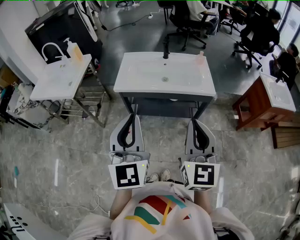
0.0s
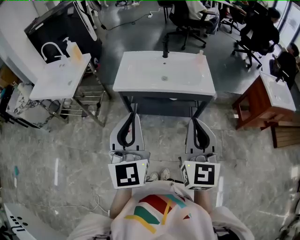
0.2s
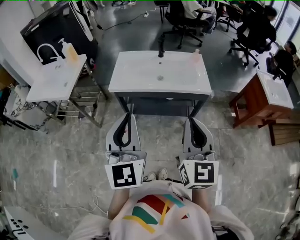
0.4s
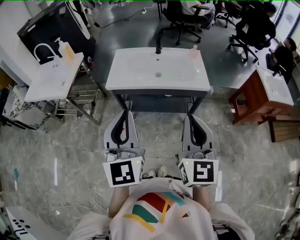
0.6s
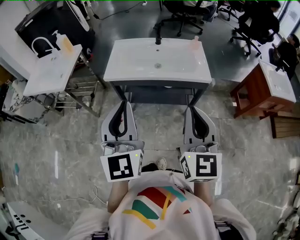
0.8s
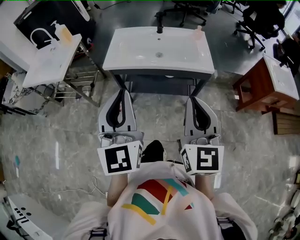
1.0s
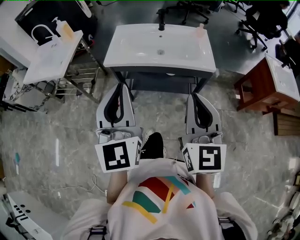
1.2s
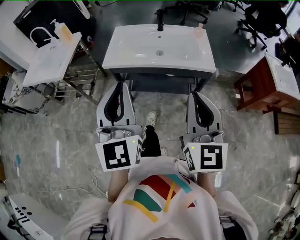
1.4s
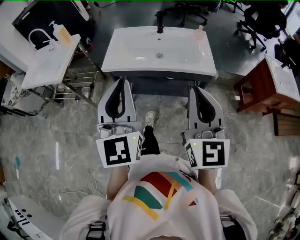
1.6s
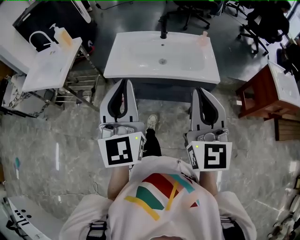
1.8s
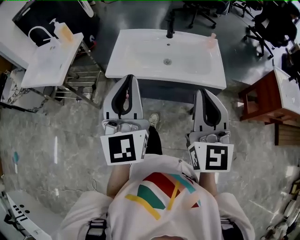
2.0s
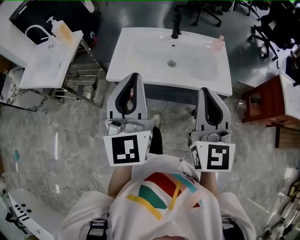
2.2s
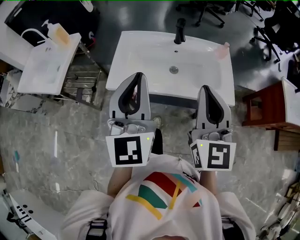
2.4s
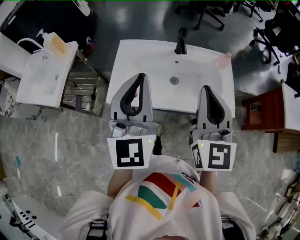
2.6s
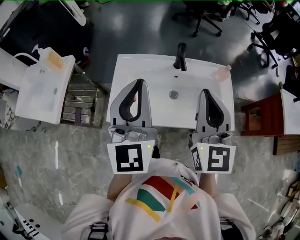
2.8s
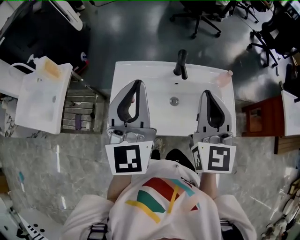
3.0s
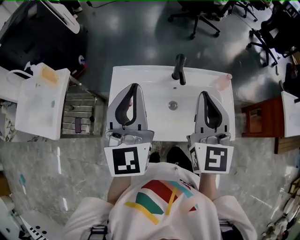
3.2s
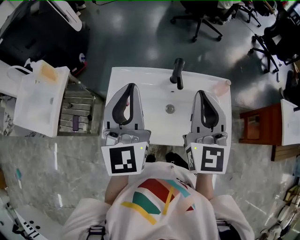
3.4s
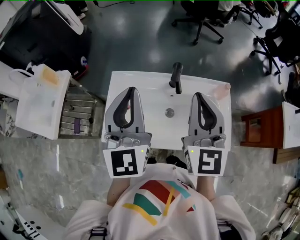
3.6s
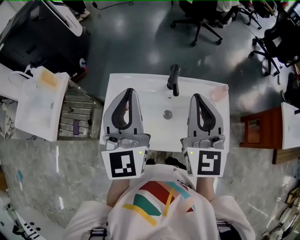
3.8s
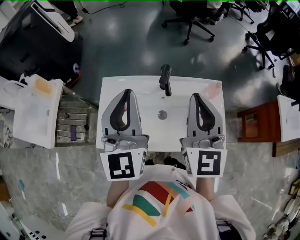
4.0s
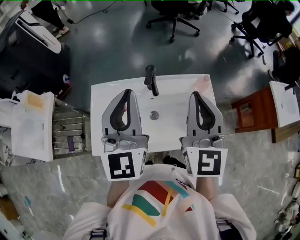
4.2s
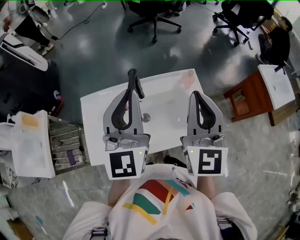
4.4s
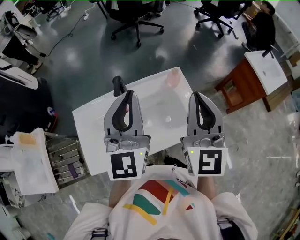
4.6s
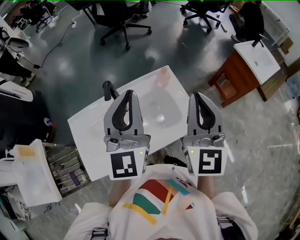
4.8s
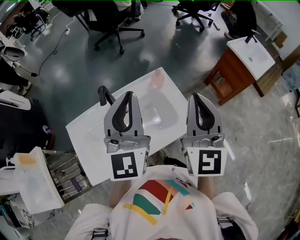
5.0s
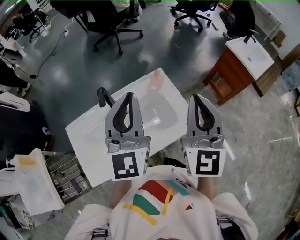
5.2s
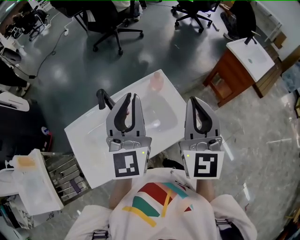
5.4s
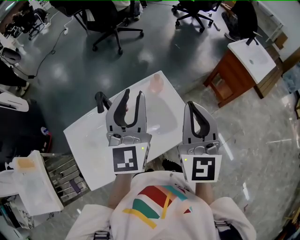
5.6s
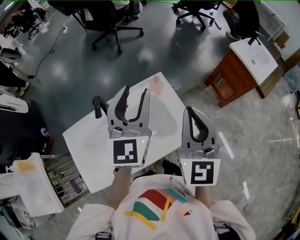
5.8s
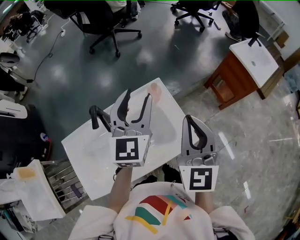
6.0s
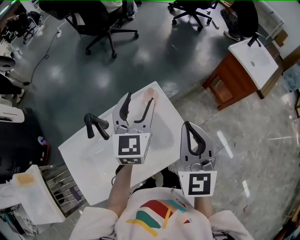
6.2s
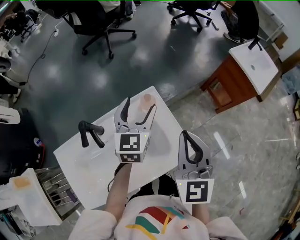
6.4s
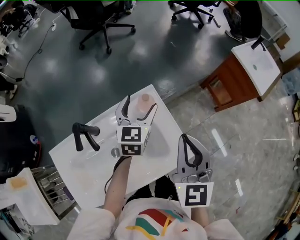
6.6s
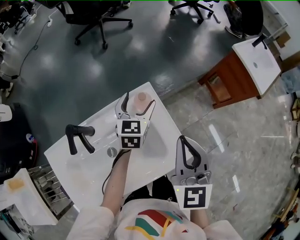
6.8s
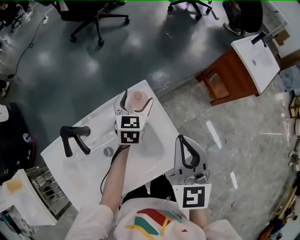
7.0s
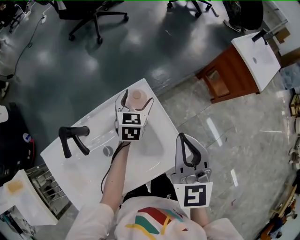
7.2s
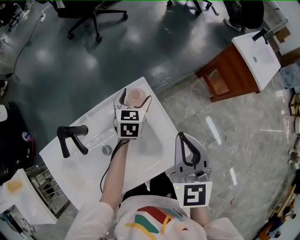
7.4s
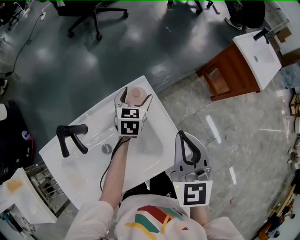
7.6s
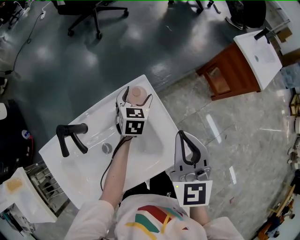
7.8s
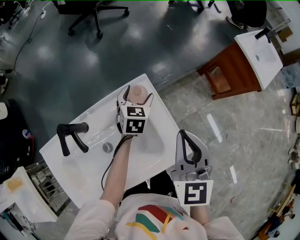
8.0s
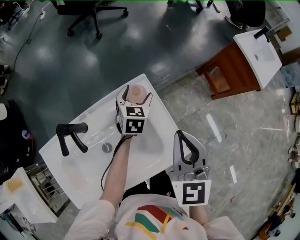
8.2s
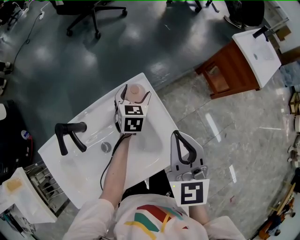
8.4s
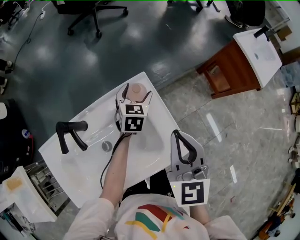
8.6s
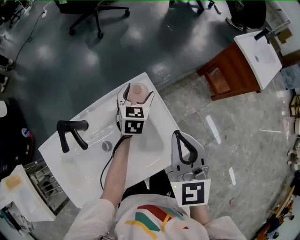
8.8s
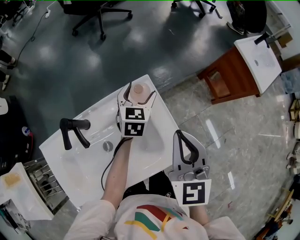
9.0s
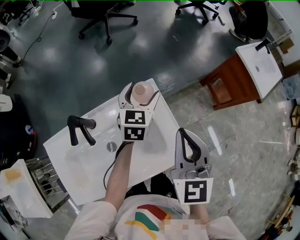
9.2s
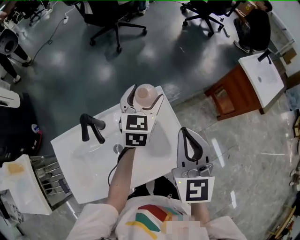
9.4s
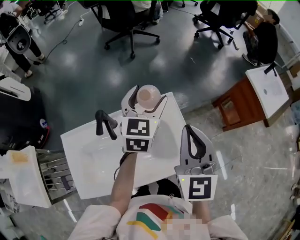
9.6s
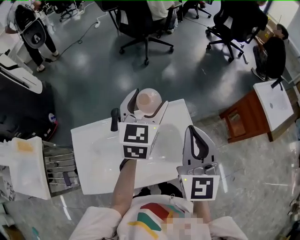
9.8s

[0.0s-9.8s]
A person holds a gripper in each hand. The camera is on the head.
0.0s to 1.4s: The grippers make only small movements.
1.4s to 2.8s: Both grippers move forward, some 35 cm.
2.8s to 4.2s: The grippers both shift forward and to the right by about 15 cm.
4.2s to 5.6s: The right gripper changes place by roughly 15 cm, and turns by approximately 20 degrees. The left gripper ends up about 20 cm from where it was, and changes its angle by some 30 degrees.
5.6s to 7.0s: The left gripper shifts some 35 cm downward and forward, tilts its fingers approximately 40 degrees downward, and opens up. Meanwhile the right gripper shifts approximately 15 cm downward and forward.
7.0s to 8.4s: The left gripper ends up some 5 cm from where it was.
8.4s to 9.8s: The right gripper moves upward and to the left, roughly 15 cm, and turns by approximately 20 degrees. The left gripper heads upward and to the left, covering approximately 30 cm, and changes its angle by about 30 degrees.

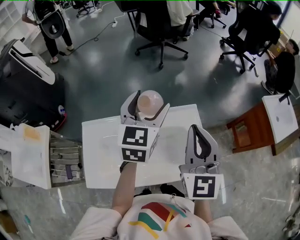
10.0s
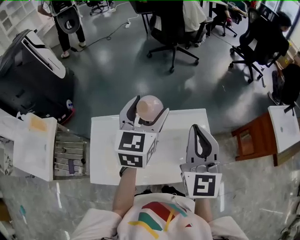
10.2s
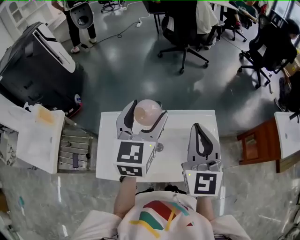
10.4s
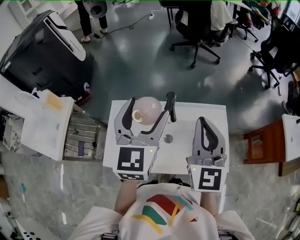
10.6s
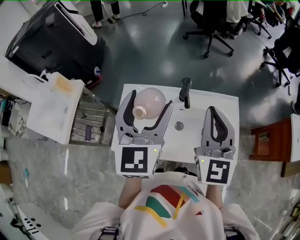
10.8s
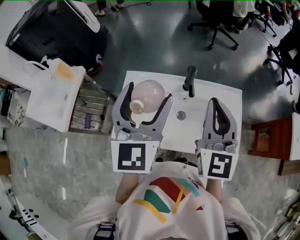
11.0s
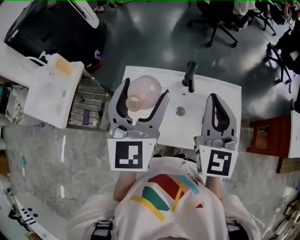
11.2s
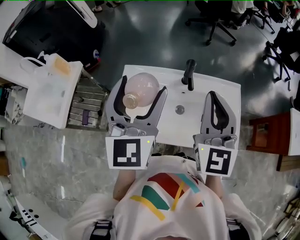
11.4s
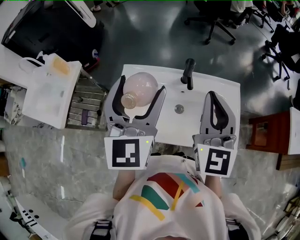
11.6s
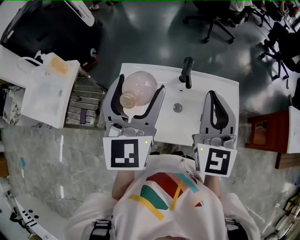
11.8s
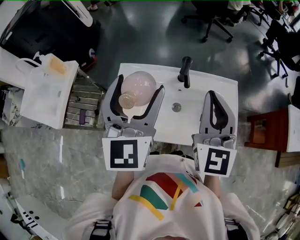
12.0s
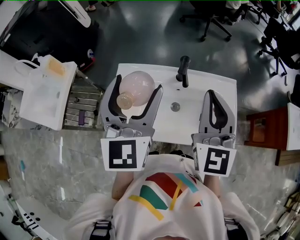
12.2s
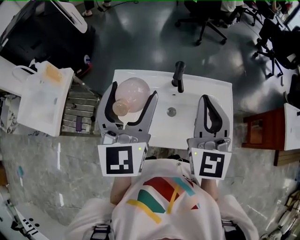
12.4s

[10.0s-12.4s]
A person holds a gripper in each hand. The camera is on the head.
10.0s to 11.2s: The left gripper shifts approximately 30 cm to the left and backward, and swivels approximately 30 degrees. Meanwhile the right gripper travels to the left by roughly 15 cm.
11.2s to 12.4s: The two grippers keep their place.

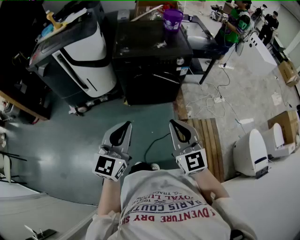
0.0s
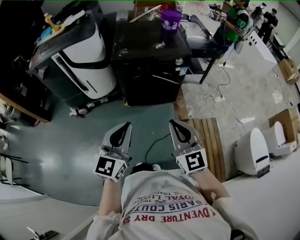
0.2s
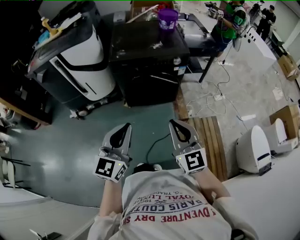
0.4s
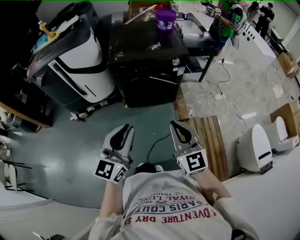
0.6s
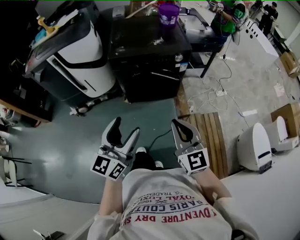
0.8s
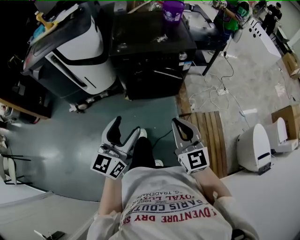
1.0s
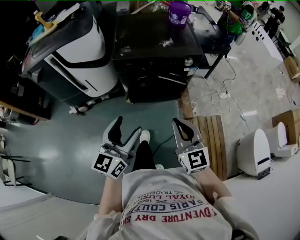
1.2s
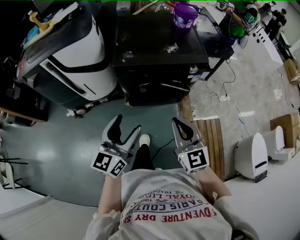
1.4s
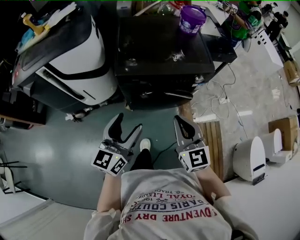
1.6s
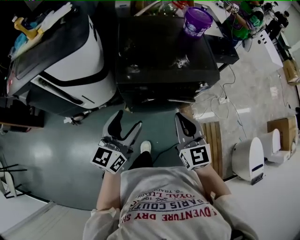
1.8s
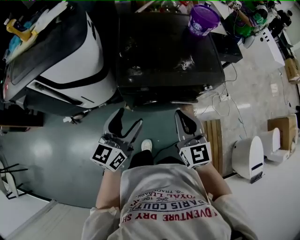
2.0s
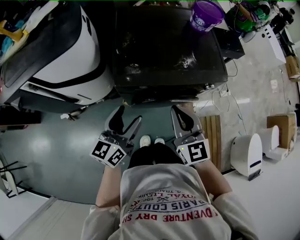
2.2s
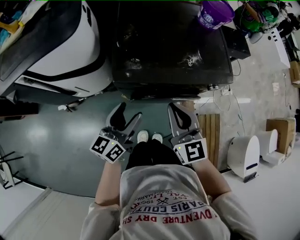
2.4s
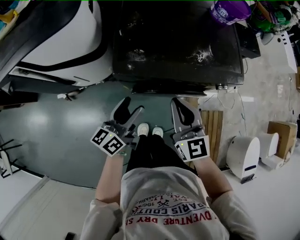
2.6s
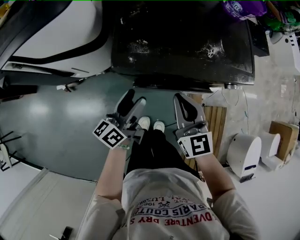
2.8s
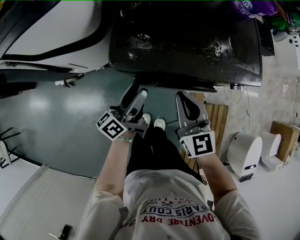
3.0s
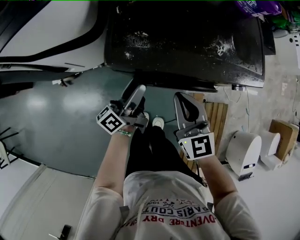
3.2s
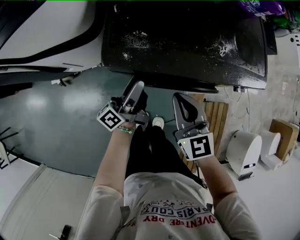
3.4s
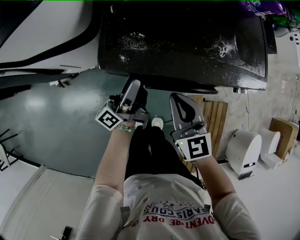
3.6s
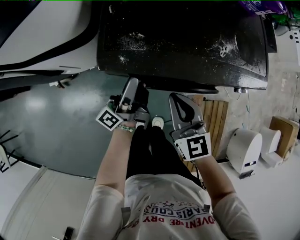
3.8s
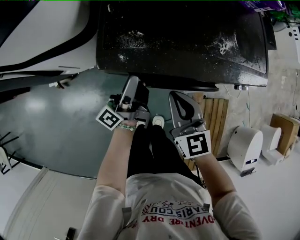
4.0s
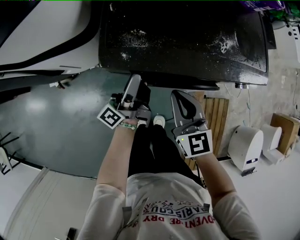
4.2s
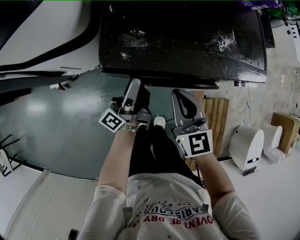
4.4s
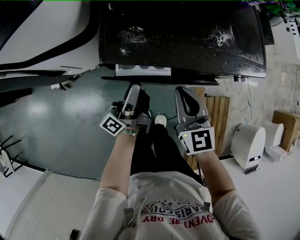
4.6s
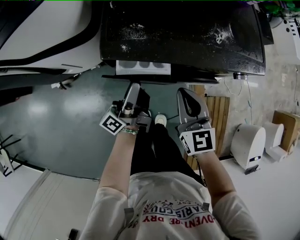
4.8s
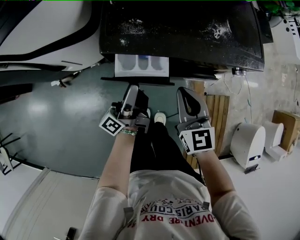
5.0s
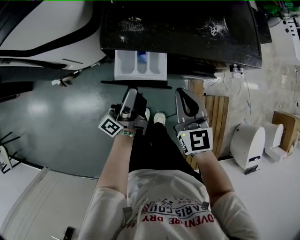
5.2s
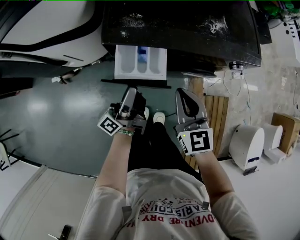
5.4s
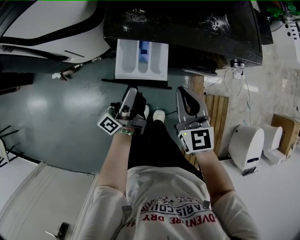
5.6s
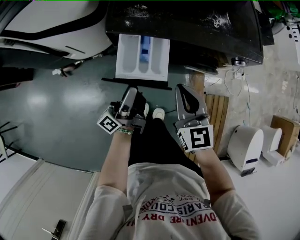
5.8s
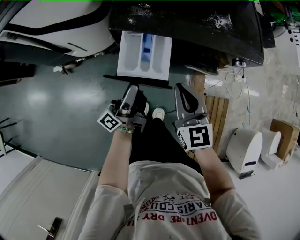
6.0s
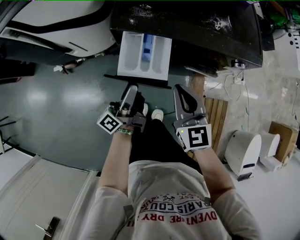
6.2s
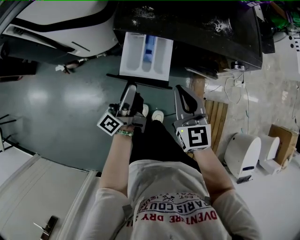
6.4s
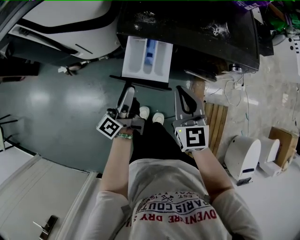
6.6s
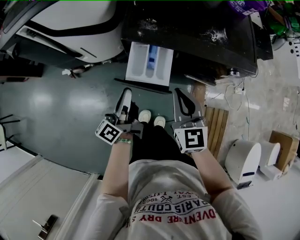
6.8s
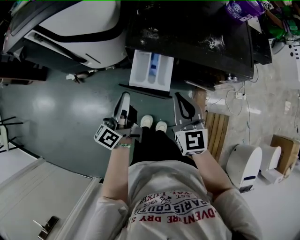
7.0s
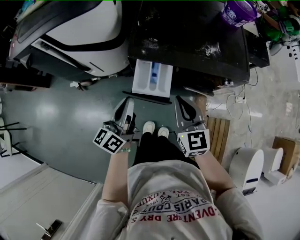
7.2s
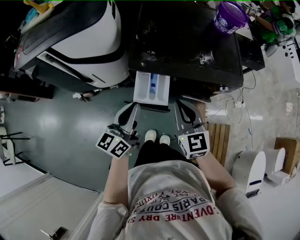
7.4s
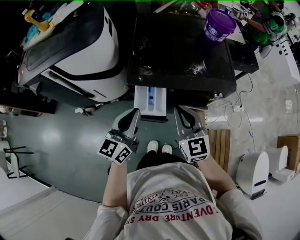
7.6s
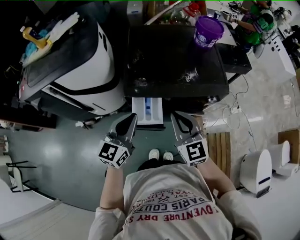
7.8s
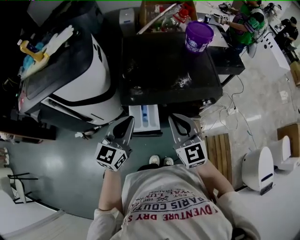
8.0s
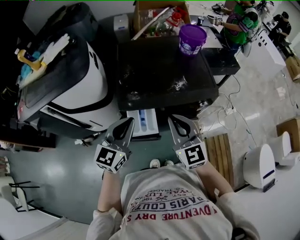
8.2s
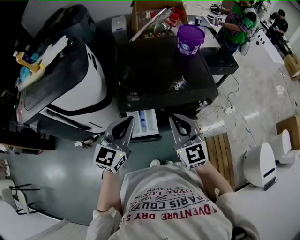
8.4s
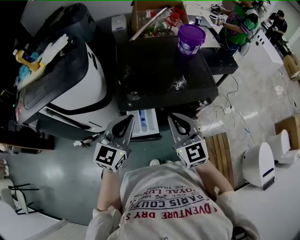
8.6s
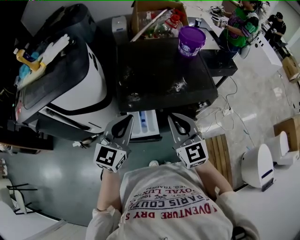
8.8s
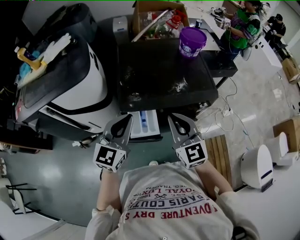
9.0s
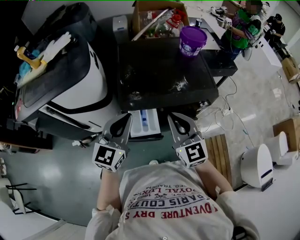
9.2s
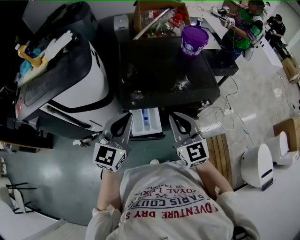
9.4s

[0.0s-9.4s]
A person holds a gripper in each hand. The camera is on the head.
0.0s to 1.6s: The grippers both shift forward by roughly 25 cm. The left gripper opens its fingers.
1.6s to 3.2s: The right gripper goes some 25 cm forward and downward. The left gripper shifts some 35 cm downward and forward, and rotates around the line of its fingers by some 50 degrees, counterclockwise from behind.
3.2s to 4.8s: The grippers stay close to where they were, moving slightly.
4.8s to 6.2s: Both grippers move backward, some 10 cm.
6.2s to 7.8s: Both grippers travel together upward, some 20 cm. The left gripper rotates around the line of its fingers by roughly 70 degrees, clockwise from behind, and closes up.
7.8s to 9.4s: The left gripper is displaced upward by some 5 cm.

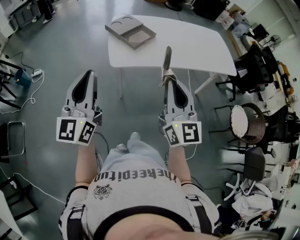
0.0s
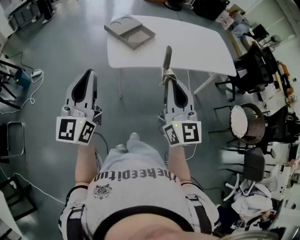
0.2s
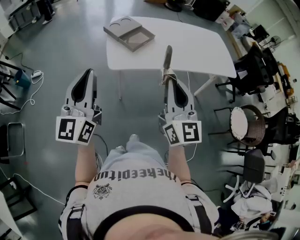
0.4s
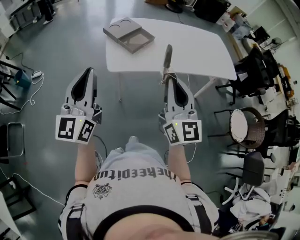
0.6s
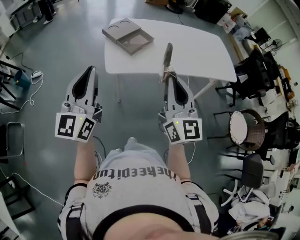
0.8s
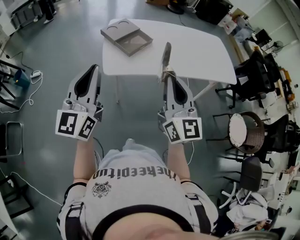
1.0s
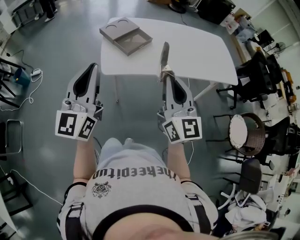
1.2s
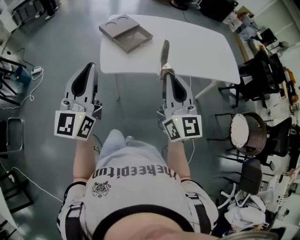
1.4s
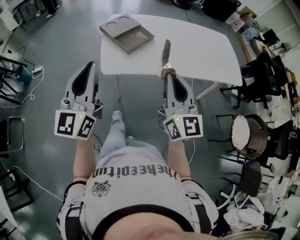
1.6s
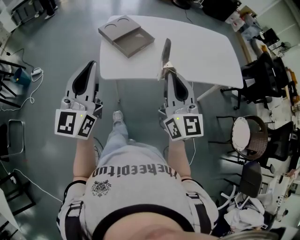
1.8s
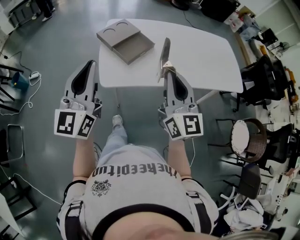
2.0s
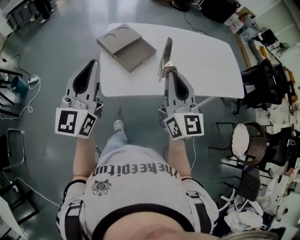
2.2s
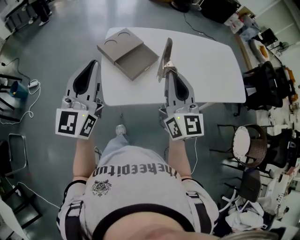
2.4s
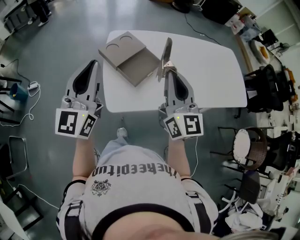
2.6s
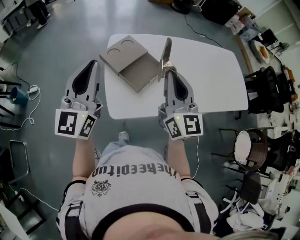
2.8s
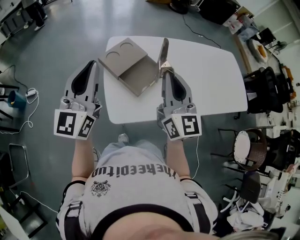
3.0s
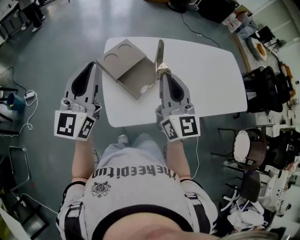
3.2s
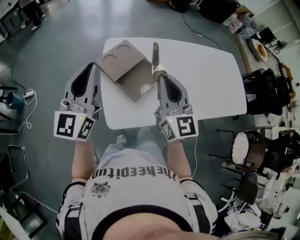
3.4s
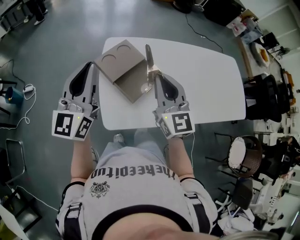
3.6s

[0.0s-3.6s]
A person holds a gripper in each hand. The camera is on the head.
0.0s to 1.8s: The two grippers go about 15 cm forward and to the right.
1.8s to 3.6s: The two grippers go some 30 cm forward.
